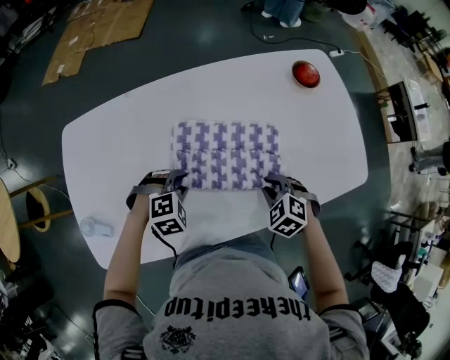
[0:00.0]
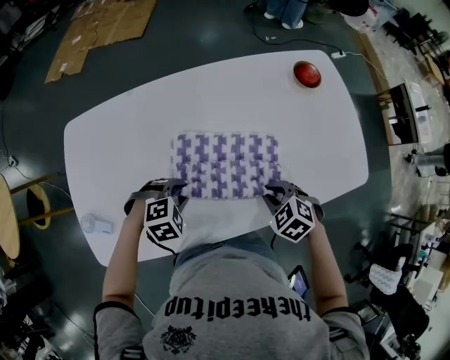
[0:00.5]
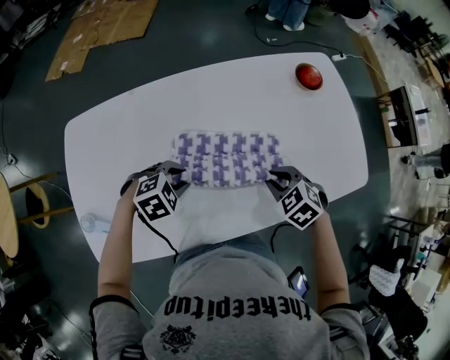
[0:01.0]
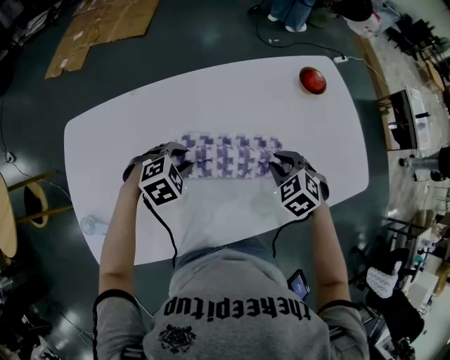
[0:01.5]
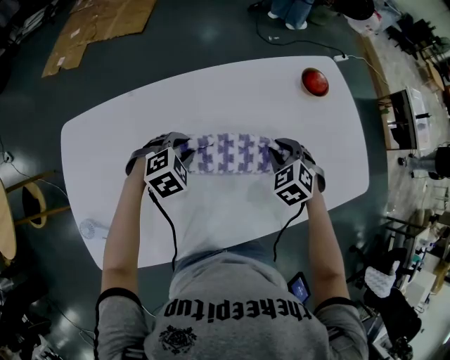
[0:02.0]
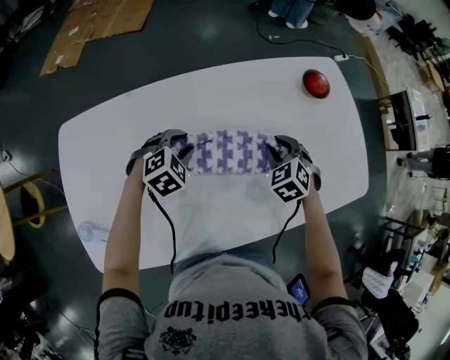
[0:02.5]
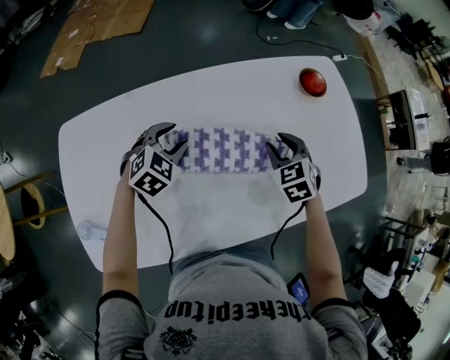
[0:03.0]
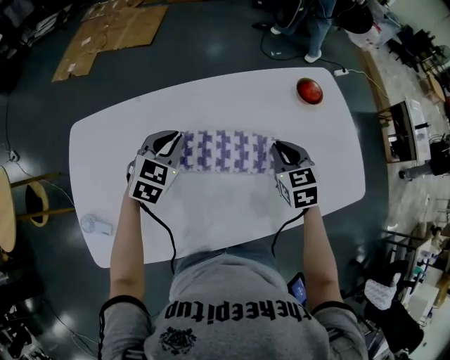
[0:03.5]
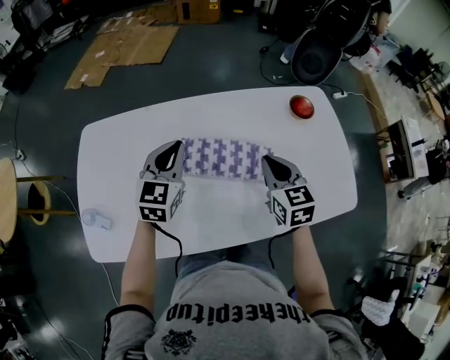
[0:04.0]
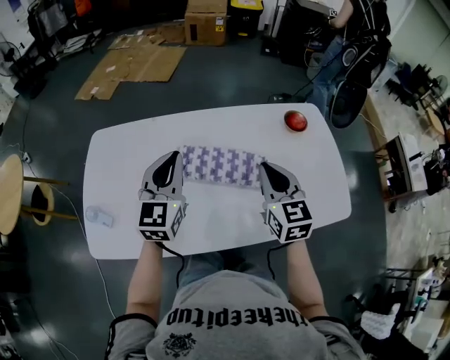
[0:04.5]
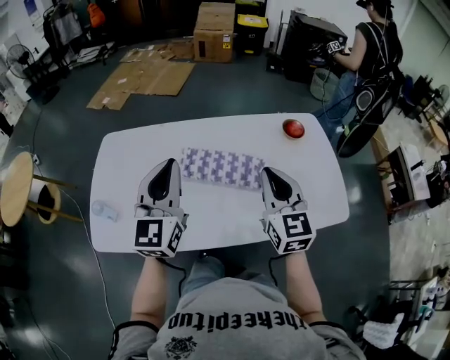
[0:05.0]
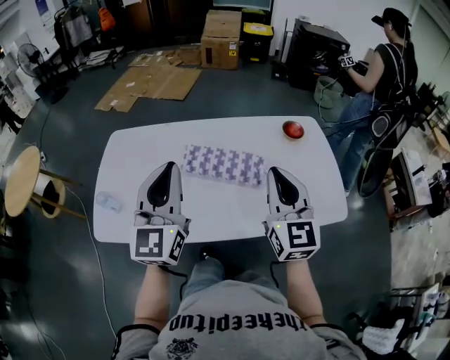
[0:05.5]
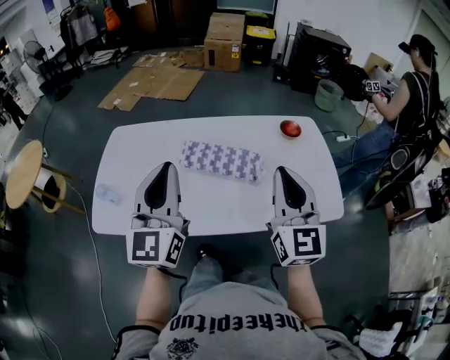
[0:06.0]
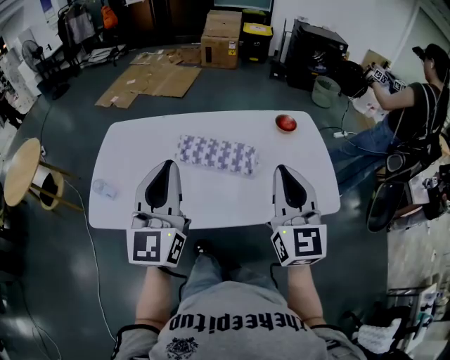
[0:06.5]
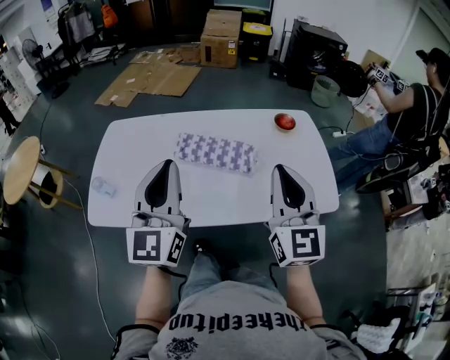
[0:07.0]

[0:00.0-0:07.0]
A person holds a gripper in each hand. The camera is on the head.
0:00.0 to 0:02.0: The grippers both shift forward by roughly 15 cm.
0:02.0 to 0:03.5: The right gripper is displaced upward by some 5 cm, and changes its angle by some 30 degrees. Meanwhile the left gripper goes roughly 10 cm upward, and changes its angle by about 40 degrees.
0:03.5 to 0:05.0: Both grippers travel together upward and backward, roughly 30 cm. The right gripper angles its fingers upward, by approximately 30 degrees, while the left gripper tips its fingers upward by some 40 degrees.
0:05.0 to 0:07.0: The left gripper heads backward, covering roughly 15 cm. The right gripper goes roughly 15 cm backward and upward.

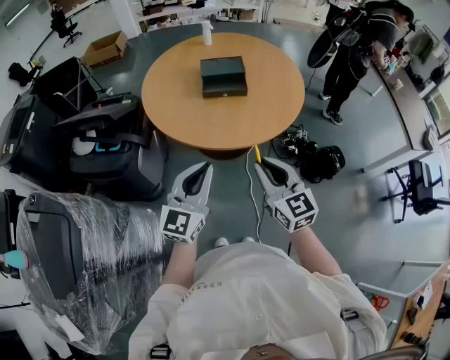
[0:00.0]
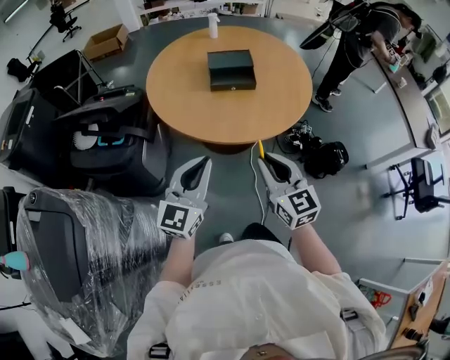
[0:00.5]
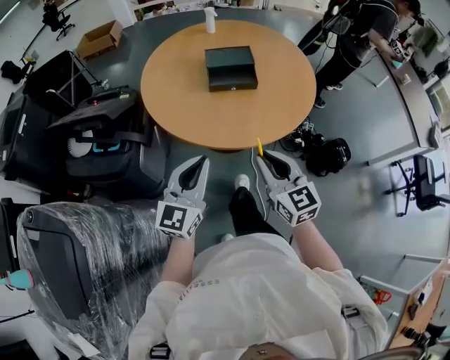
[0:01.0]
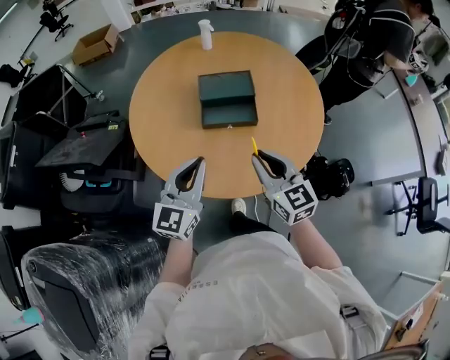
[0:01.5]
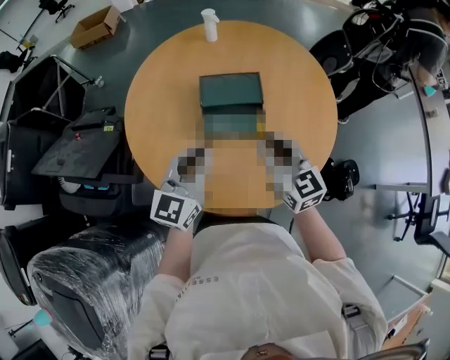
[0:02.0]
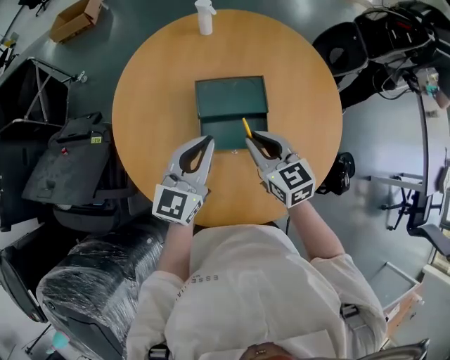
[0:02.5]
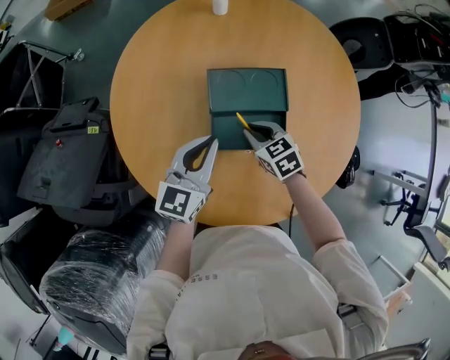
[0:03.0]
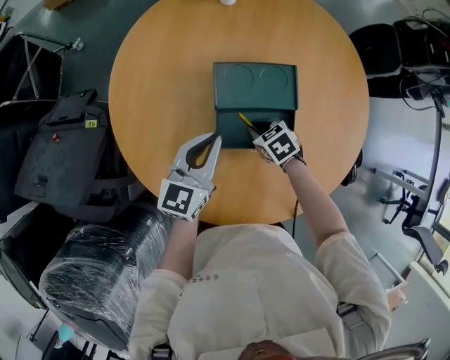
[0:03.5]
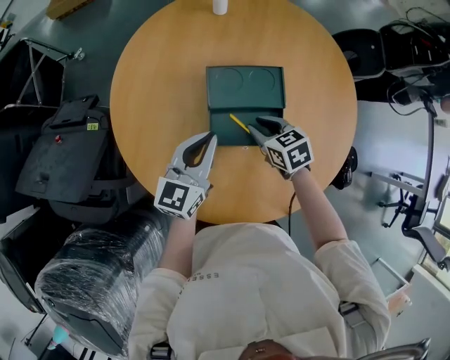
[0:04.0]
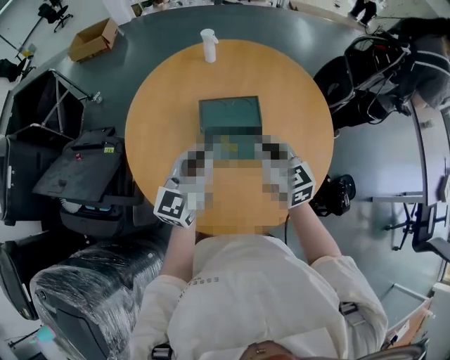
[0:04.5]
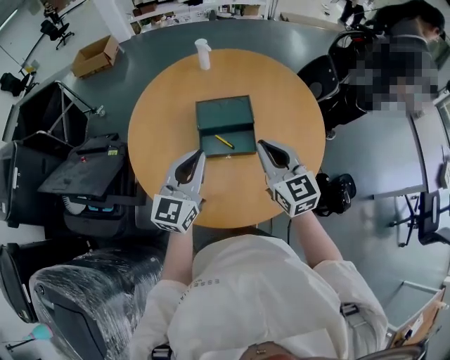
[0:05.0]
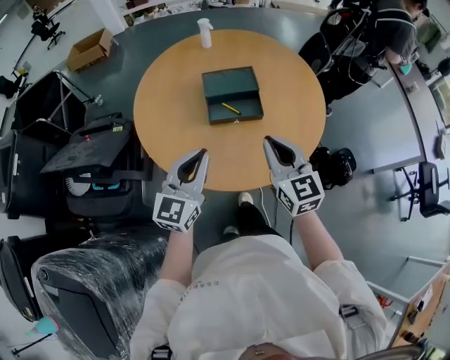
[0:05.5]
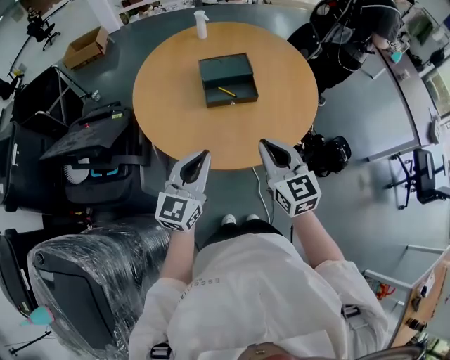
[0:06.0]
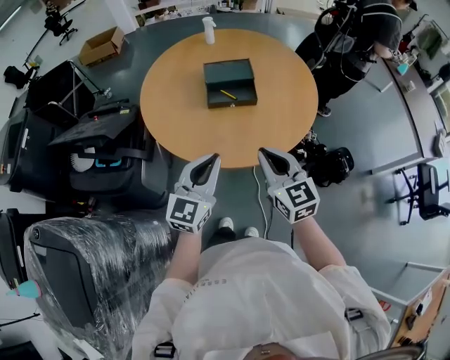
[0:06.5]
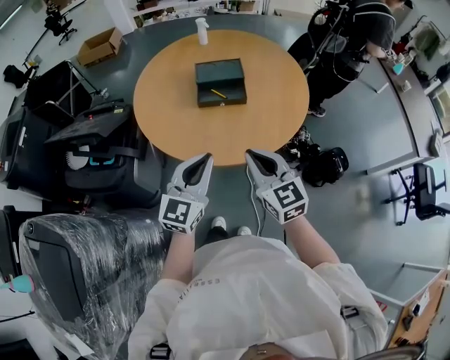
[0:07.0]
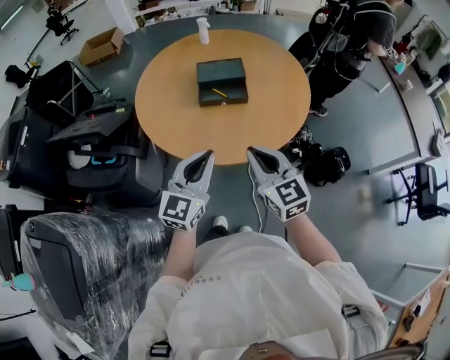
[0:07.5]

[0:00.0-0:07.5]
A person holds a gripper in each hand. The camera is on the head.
0:00.0 to 0:02.0: The grippers both shift forward by some 40 cm.
0:02.0 to 0:04.0: The left gripper is displaced forward and downward by roughly 15 cm; the right gripper shifts some 25 cm downward and forward, and tilts its fingers some 40 degrees downward.
0:04.0 to 0:05.5: Both grippers travel together backward and upward, roughly 30 cm. The right gripper tips its fingers upward by some 40 degrees, and closes up.
0:05.5 to 0:07.5: The right gripper goes about 15 cm backward; the left gripper is displaced backward and to the right by some 15 cm.

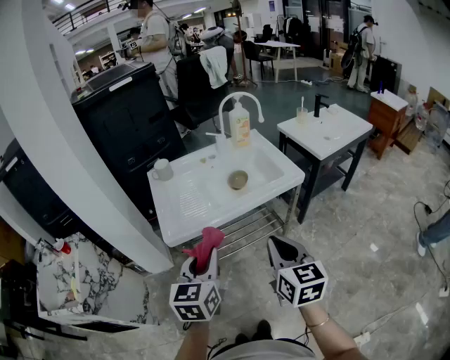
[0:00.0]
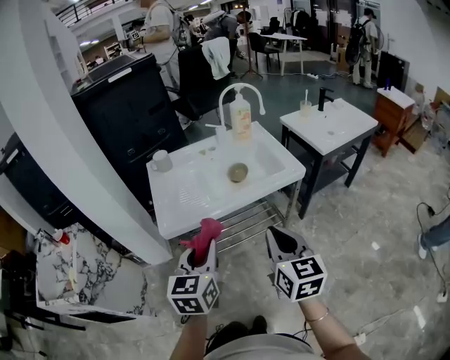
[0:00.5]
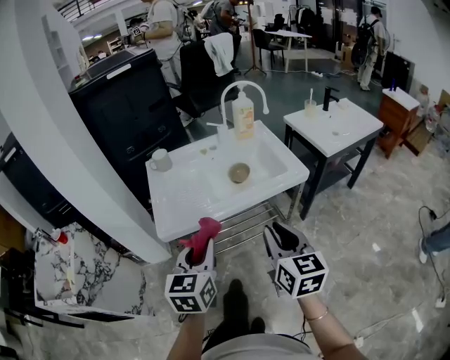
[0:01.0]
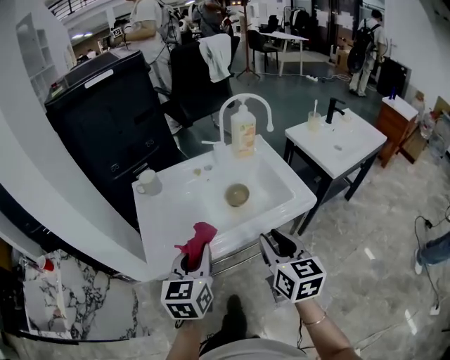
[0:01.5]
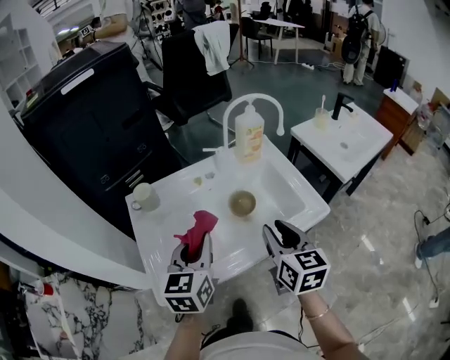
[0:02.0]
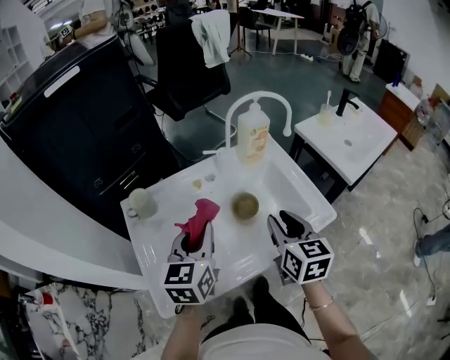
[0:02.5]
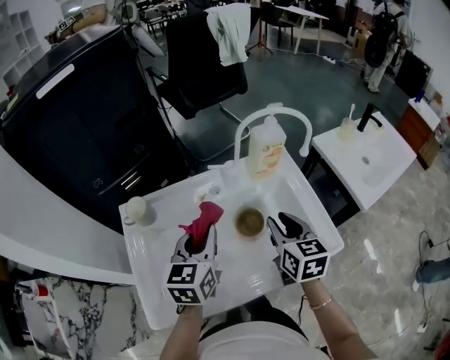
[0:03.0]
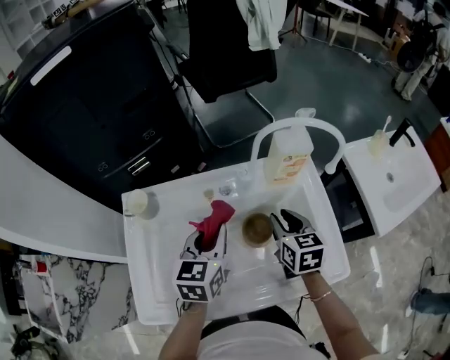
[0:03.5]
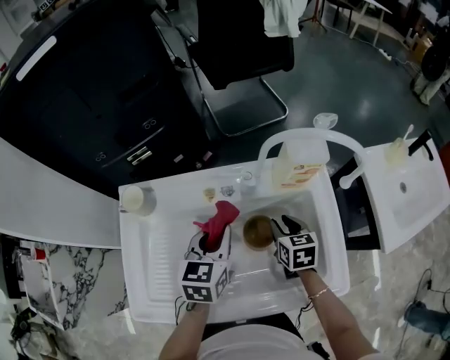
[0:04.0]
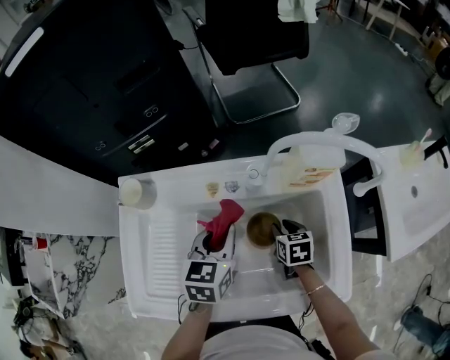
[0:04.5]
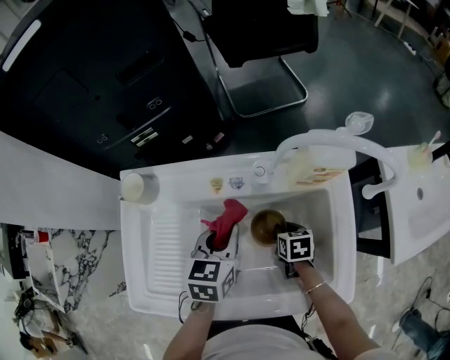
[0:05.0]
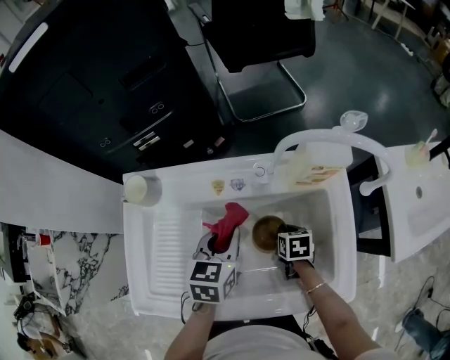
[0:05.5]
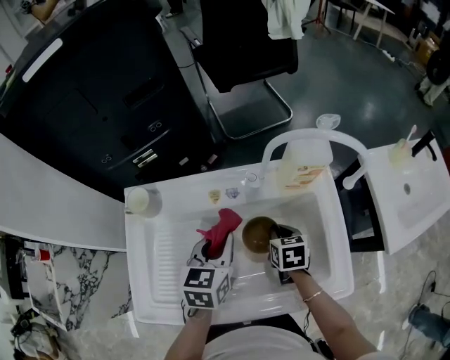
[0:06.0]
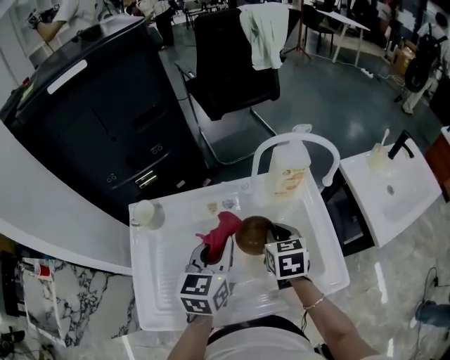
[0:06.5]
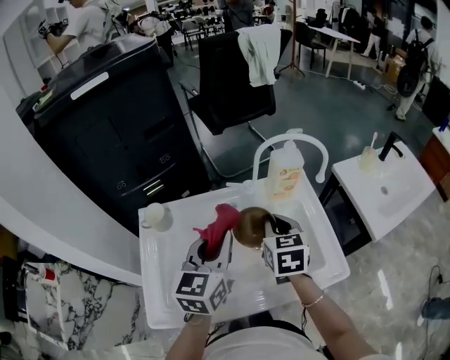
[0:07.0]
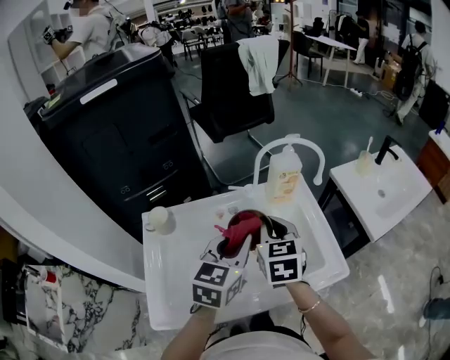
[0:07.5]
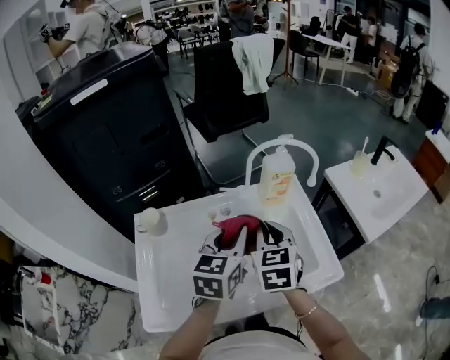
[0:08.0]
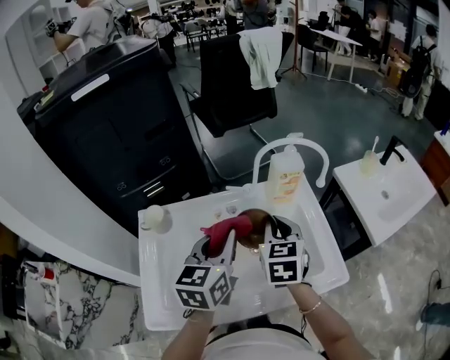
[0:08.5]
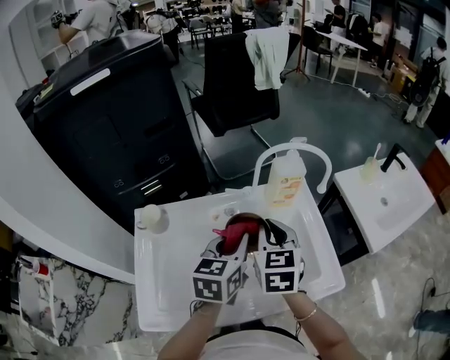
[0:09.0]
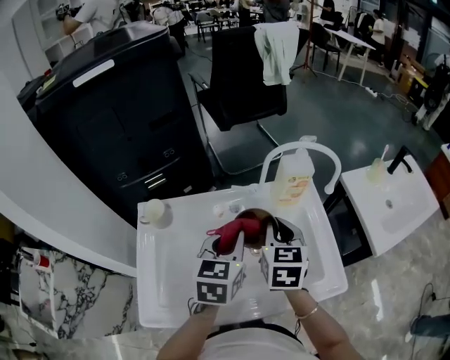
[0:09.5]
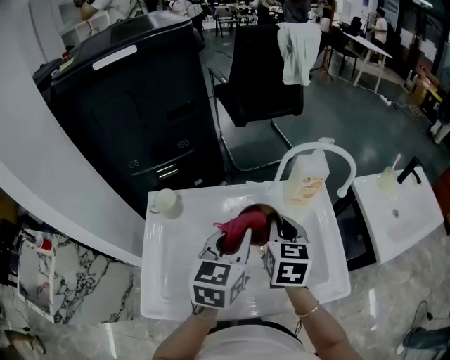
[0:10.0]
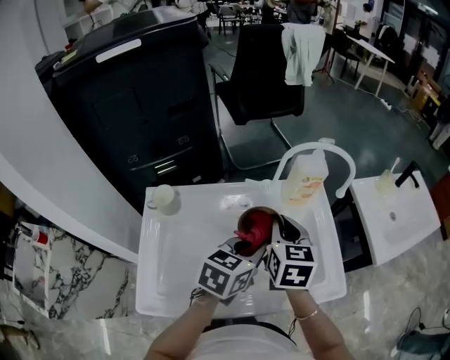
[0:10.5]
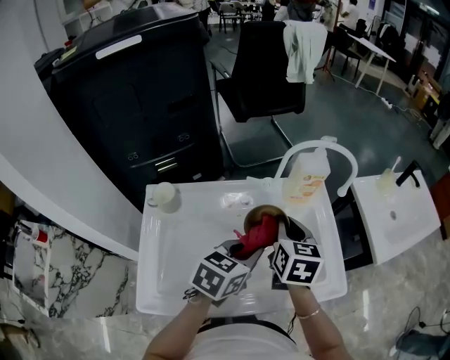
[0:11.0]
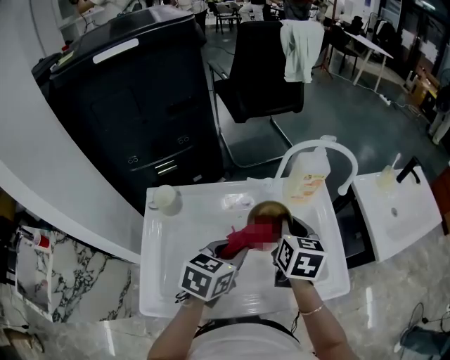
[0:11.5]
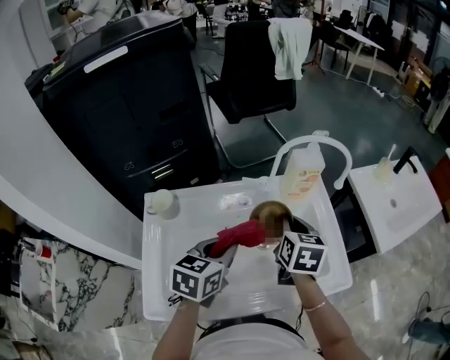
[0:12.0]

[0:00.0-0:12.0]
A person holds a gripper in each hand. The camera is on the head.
0:00.0 to 0:02.0: Both grippers travel together forward, about 35 cm. The right gripper opens.
0:02.0 to 0:04.0: Both grippers travel together forward and downward, approximately 30 cm. The right gripper rotates about 30 degrees.
0:04.0 to 0:06.0: The right gripper goes downward and returns, about 10 cm each way, and closes up.
0:06.0 to 0:08.0: The left gripper travels upward and backward by some 15 cm; the right gripper heads upward, covering approximately 25 cm, and changes its angle by roughly 30 degrees.
0:08.0 to 0:10.0: The right gripper moves some 5 cm.
0:10.0 to 0:12.0: The left gripper shifts approximately 5 cm downward, and goes to the right and returns, approximately 5 cm each way, while the right gripper changes place by some 5 cm.
